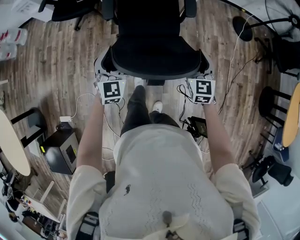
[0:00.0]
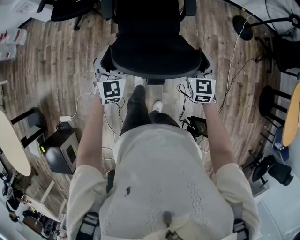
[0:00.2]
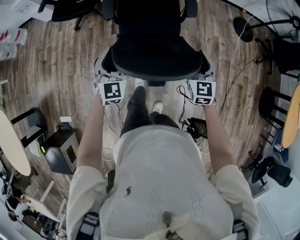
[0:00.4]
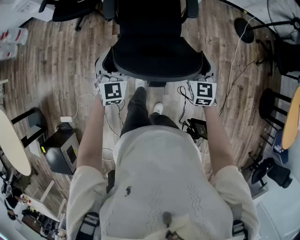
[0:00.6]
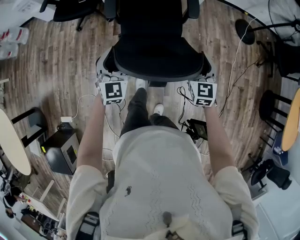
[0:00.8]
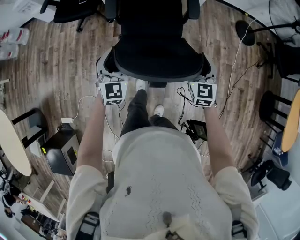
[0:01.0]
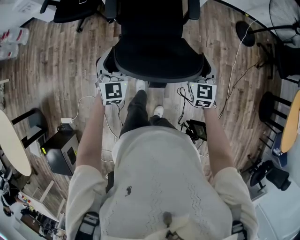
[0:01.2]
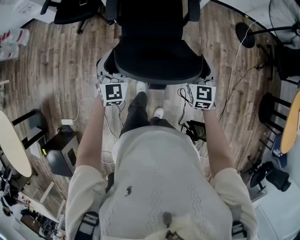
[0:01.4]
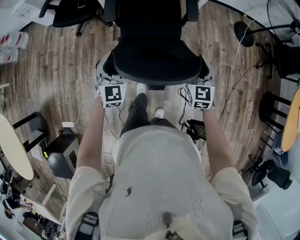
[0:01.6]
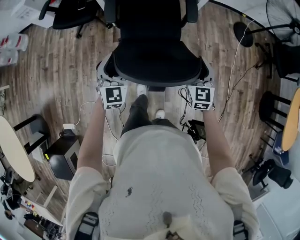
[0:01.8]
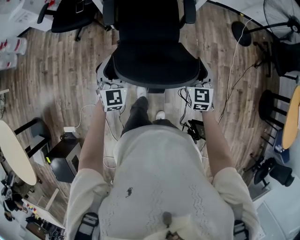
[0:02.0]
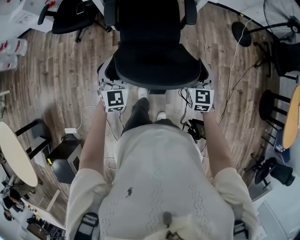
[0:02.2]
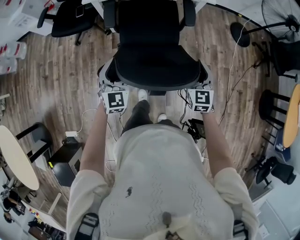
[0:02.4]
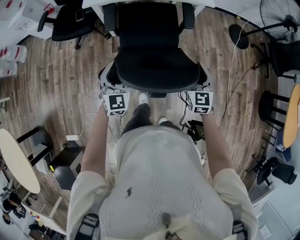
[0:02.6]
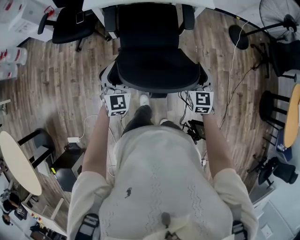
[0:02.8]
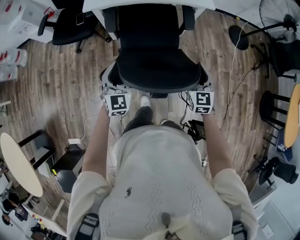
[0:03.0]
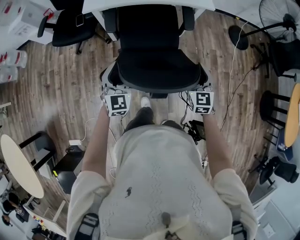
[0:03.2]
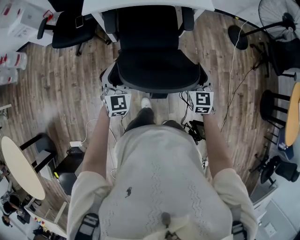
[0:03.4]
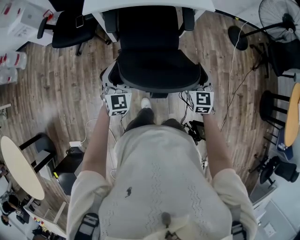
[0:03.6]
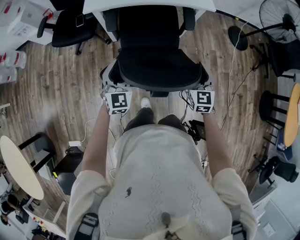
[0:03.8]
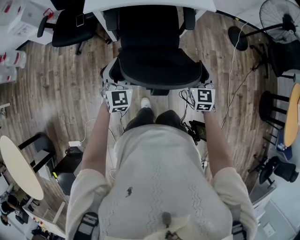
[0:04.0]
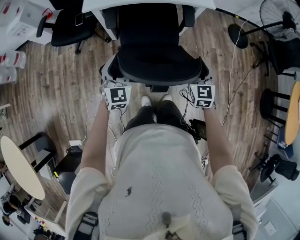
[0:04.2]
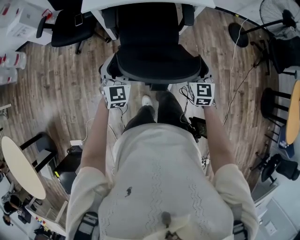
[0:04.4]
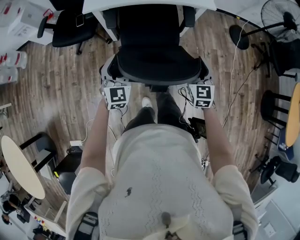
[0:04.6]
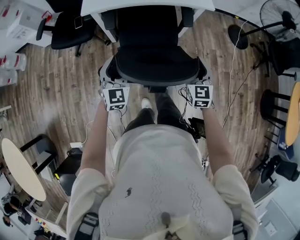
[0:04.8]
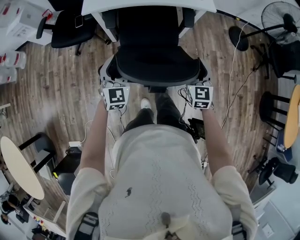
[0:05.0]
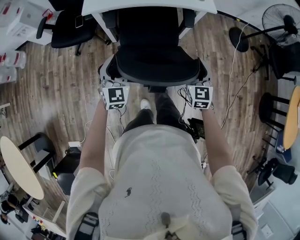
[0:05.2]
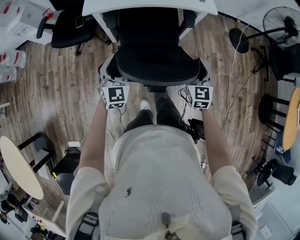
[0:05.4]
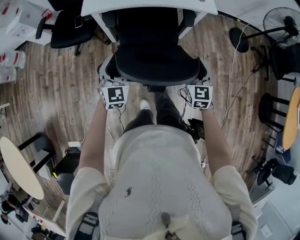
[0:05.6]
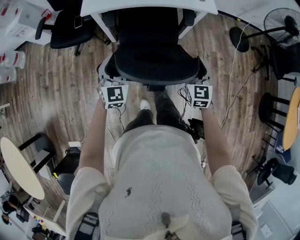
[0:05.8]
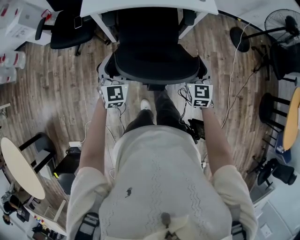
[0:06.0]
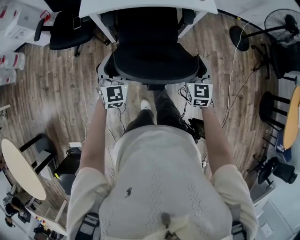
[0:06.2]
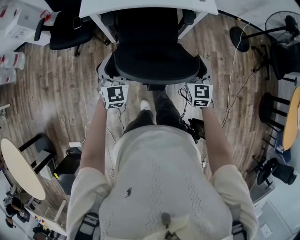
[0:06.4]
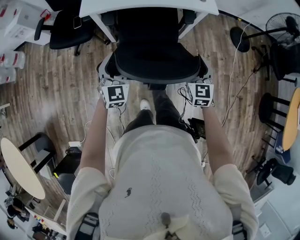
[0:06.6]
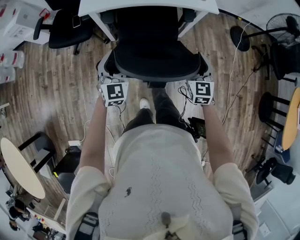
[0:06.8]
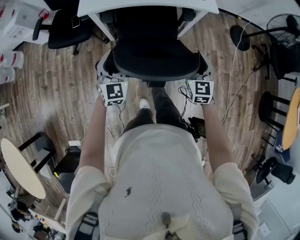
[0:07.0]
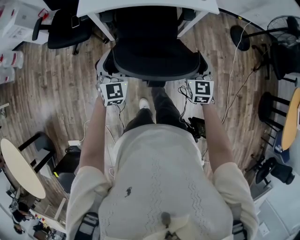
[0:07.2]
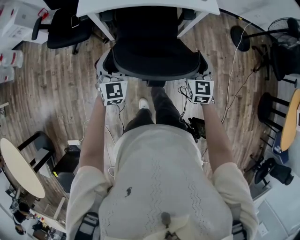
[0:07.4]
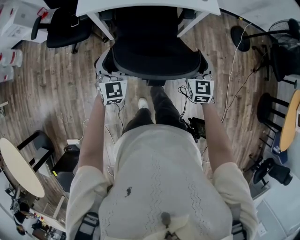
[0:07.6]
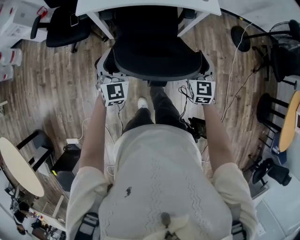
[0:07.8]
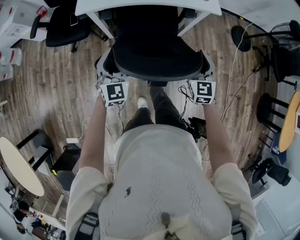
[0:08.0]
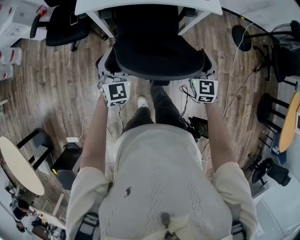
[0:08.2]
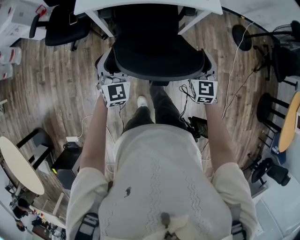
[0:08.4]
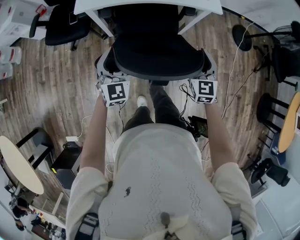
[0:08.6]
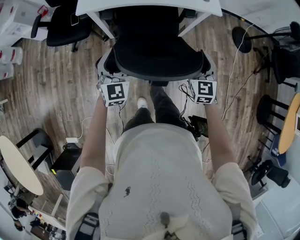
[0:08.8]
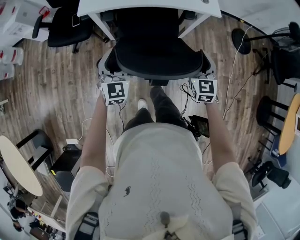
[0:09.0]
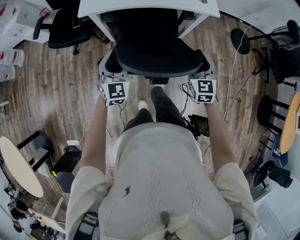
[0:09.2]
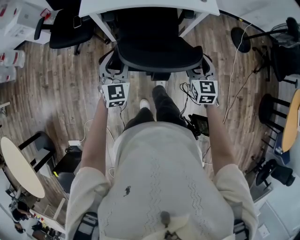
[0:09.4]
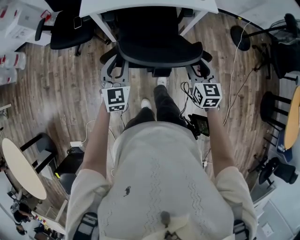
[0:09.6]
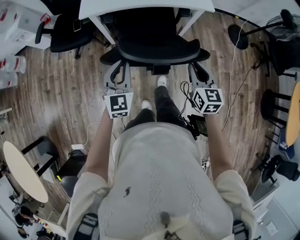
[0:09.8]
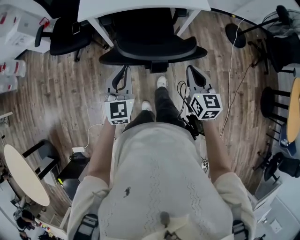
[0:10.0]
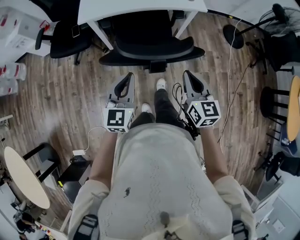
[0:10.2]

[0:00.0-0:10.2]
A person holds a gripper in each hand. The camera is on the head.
0:00.0 to 0:01.4: Both grippers move forward, about 5 cm.
0:01.4 to 0:03.0: Both grippers move forward, some 10 cm.
0:03.0 to 0:04.4: The grippers stay close to where they were, moving slightly.
0:04.4 to 0:05.8: The two grippers go roughly 5 cm forward.
0:05.8 to 0:07.2: The two grippers go some 5 cm forward.
0:07.2 to 0:08.8: The grippers move only a little.
0:08.8 to 0:10.2: The two grippers go about 25 cm backward and upward. The left gripper rotates some 20 degrees, and closes; the right gripper turns by about 20 degrees, and closes.

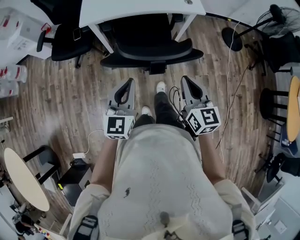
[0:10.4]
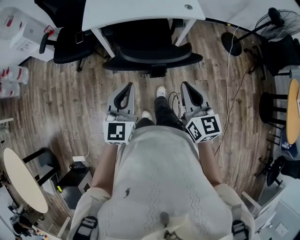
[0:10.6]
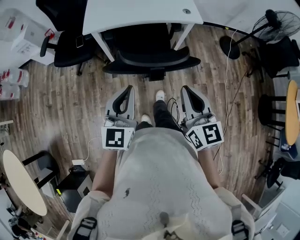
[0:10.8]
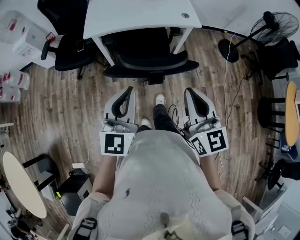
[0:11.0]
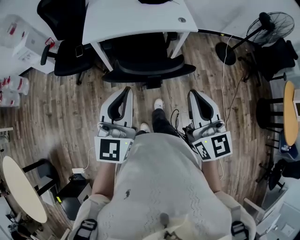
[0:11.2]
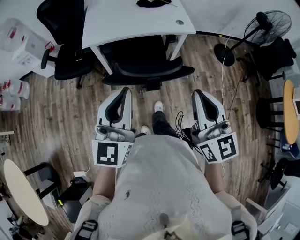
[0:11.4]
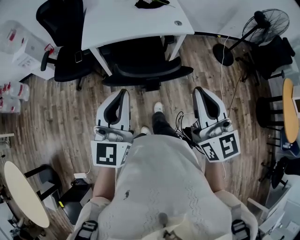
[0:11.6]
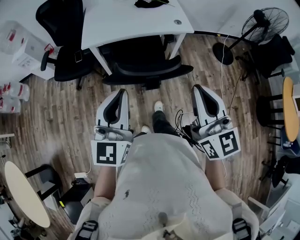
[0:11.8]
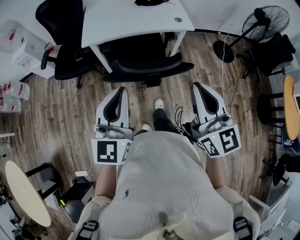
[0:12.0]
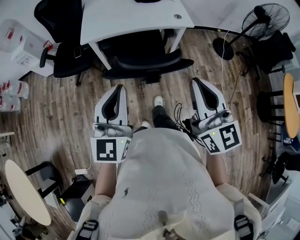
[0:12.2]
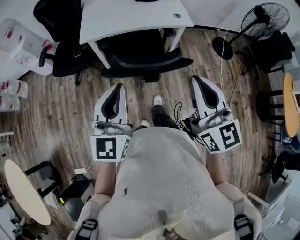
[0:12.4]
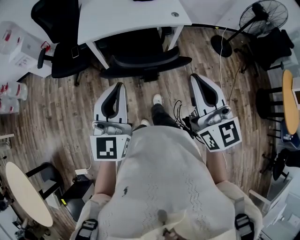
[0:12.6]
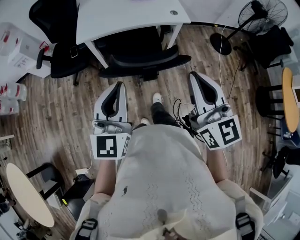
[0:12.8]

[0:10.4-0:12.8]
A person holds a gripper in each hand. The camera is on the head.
0:10.4 to 0:11.6: Both grippers move upward, approximately 20 cm.
0:11.6 to 0:12.8: The grippers make only small movements.

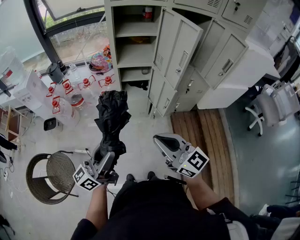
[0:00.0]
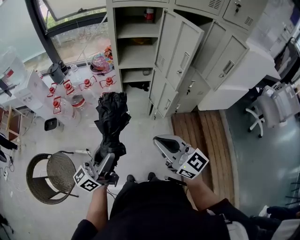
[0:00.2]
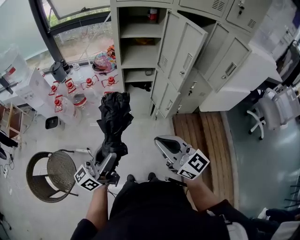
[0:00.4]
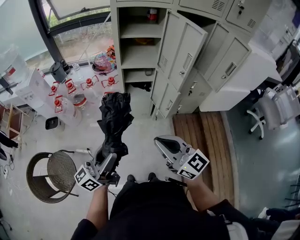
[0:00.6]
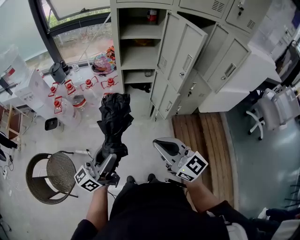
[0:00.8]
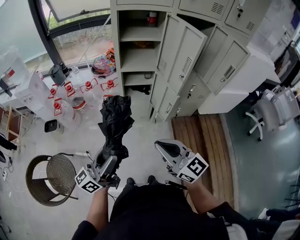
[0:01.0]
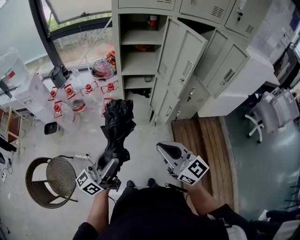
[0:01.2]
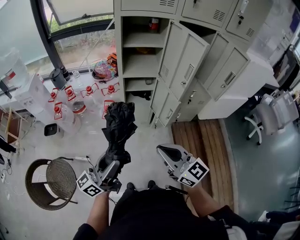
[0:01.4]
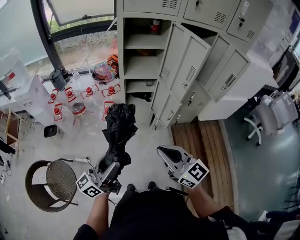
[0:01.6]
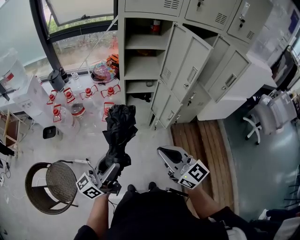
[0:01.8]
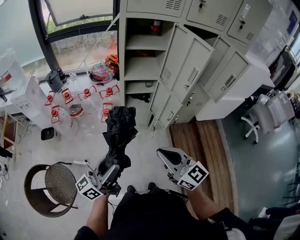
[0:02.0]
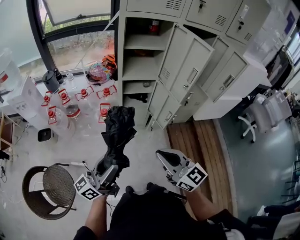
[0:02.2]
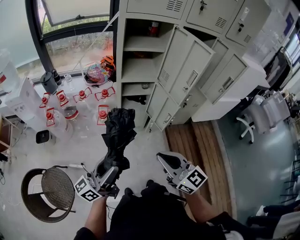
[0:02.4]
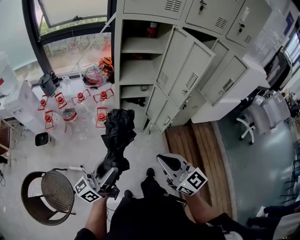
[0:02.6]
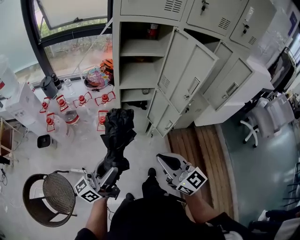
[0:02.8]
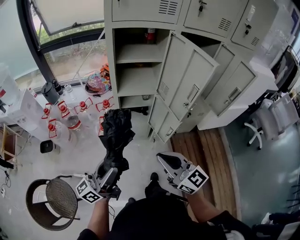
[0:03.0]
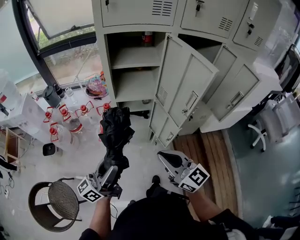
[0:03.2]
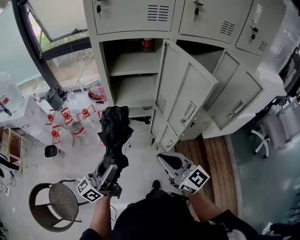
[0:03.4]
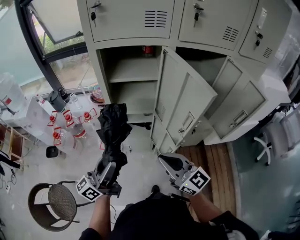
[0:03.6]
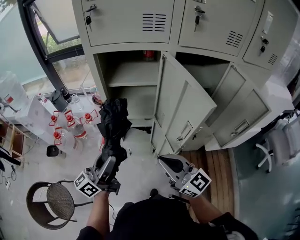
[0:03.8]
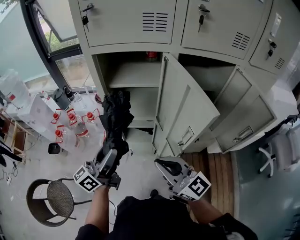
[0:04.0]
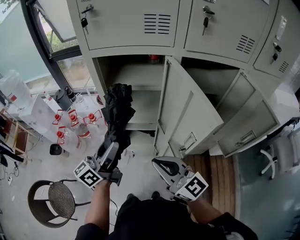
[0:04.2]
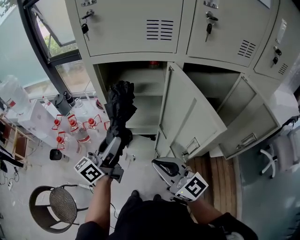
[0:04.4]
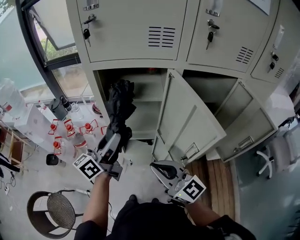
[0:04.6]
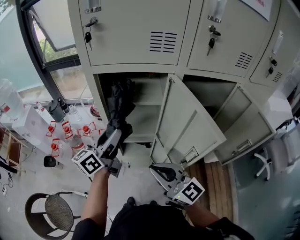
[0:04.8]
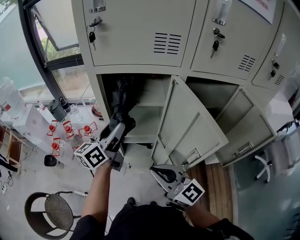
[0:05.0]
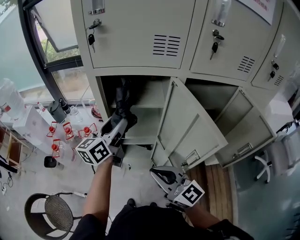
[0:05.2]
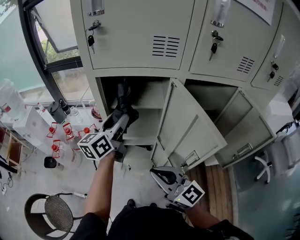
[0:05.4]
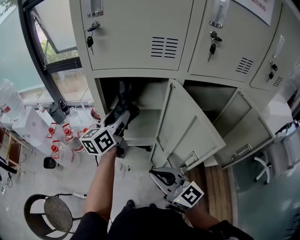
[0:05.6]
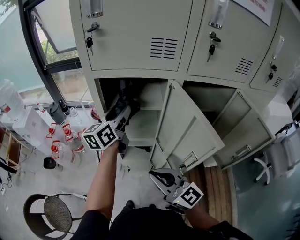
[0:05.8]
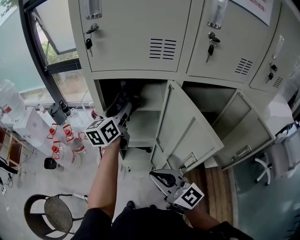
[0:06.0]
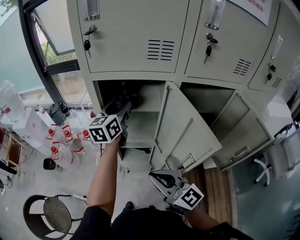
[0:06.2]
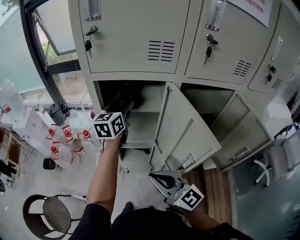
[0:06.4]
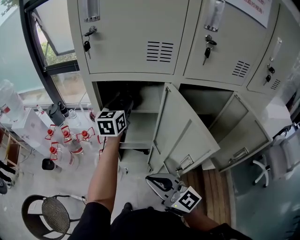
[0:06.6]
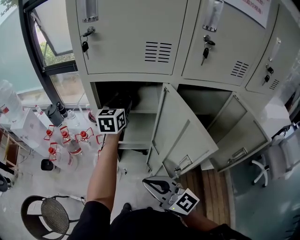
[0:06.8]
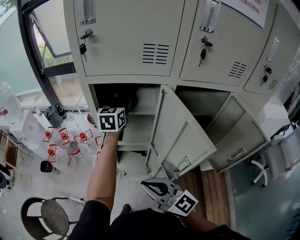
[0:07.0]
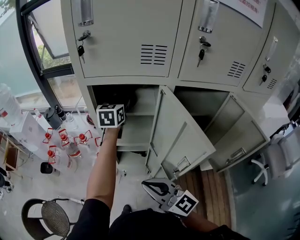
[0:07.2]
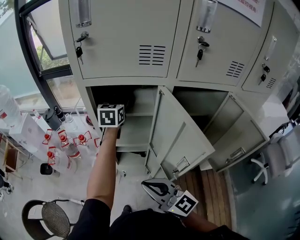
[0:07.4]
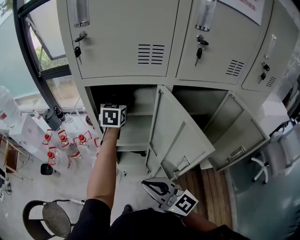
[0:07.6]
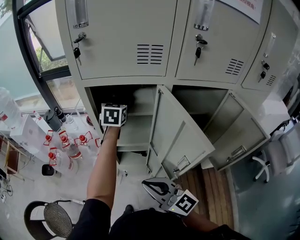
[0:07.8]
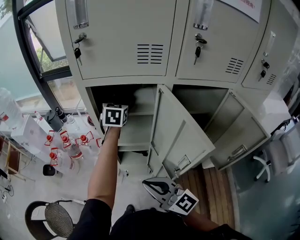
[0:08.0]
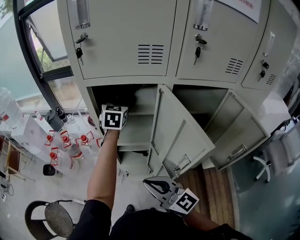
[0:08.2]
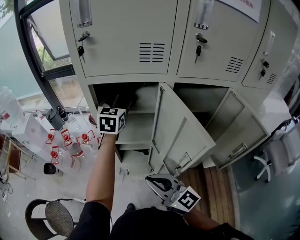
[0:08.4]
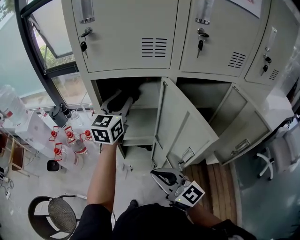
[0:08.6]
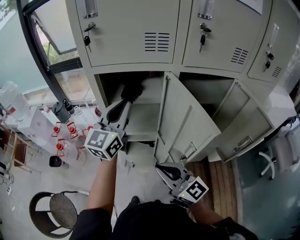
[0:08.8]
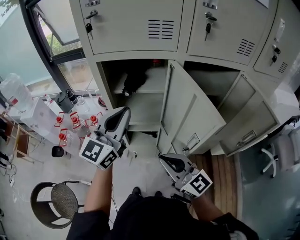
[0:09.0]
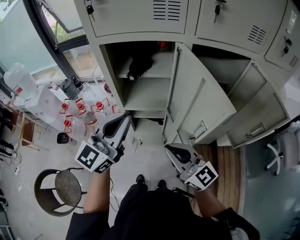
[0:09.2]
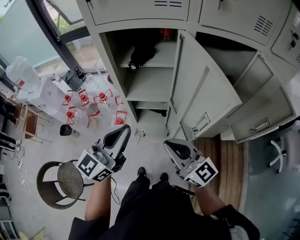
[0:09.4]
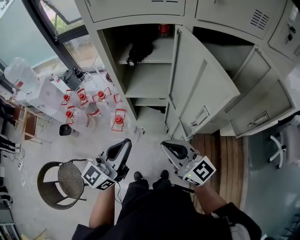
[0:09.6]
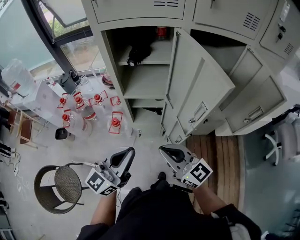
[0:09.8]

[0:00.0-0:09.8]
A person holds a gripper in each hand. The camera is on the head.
0:00.0 to 0:01.4: There are only small adjustments of the grippers.
0:01.4 to 0:02.8: The two grippers go roughly 5 cm forward.
0:02.8 to 0:04.2: Both grippers move forward and to the right, approximately 25 cm.
0:04.2 to 0:05.6: The left gripper is displaced forward by approximately 15 cm.
0:05.6 to 0:07.0: The left gripper goes approximately 10 cm forward and to the right, and changes its angle by roughly 30 degrees.
0:07.0 to 0:08.4: The grippers stay close to where they were, moving slightly.
0:08.4 to 0:09.8: The left gripper shifts about 40 cm backward, changes its angle by about 40 degrees, and closes. Meanwhile the right gripper goes about 10 cm backward and downward.

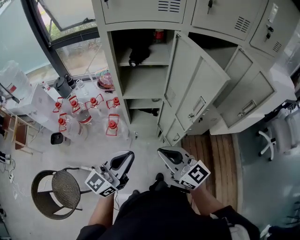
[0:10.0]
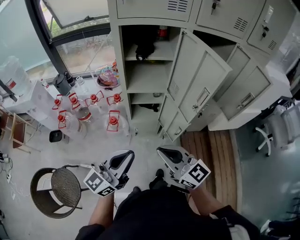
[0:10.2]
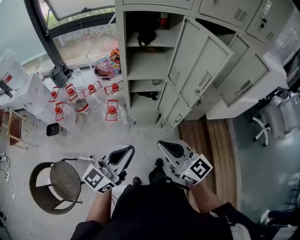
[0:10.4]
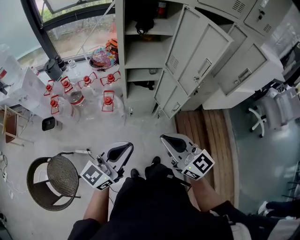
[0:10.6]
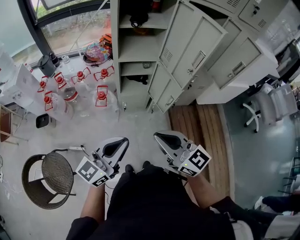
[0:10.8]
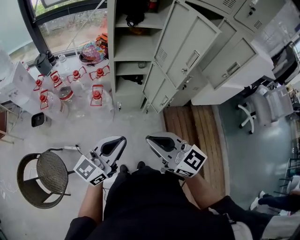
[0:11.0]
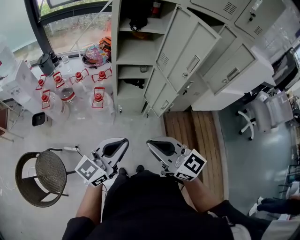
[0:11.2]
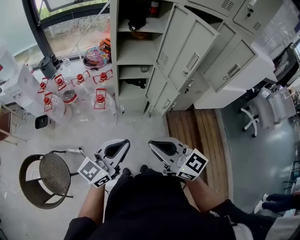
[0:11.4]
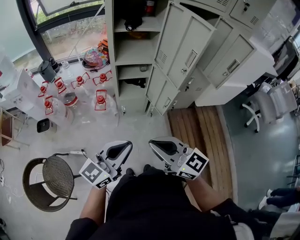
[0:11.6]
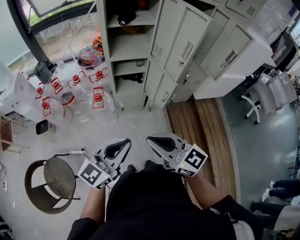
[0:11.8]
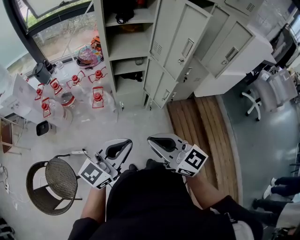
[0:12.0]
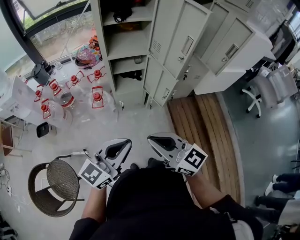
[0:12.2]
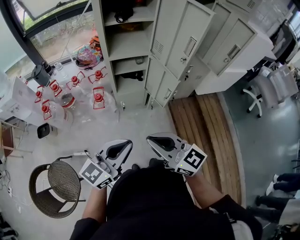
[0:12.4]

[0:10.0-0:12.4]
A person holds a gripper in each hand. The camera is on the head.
0:10.0 to 0:11.2: The left gripper goes approximately 15 cm backward. Meanwhile the right gripper goes some 20 cm backward and to the left.
0:11.2 to 0:12.4: The grippers stay close to where they were, moving slightly.
